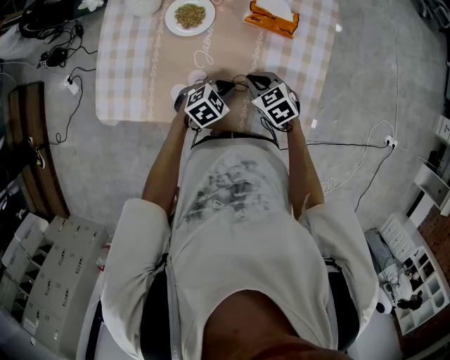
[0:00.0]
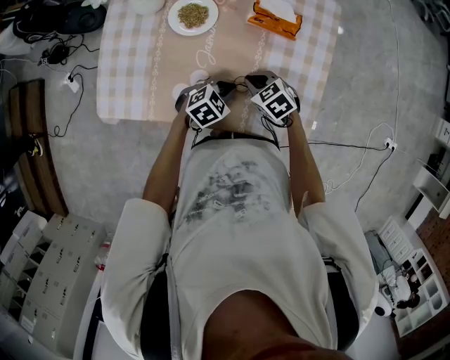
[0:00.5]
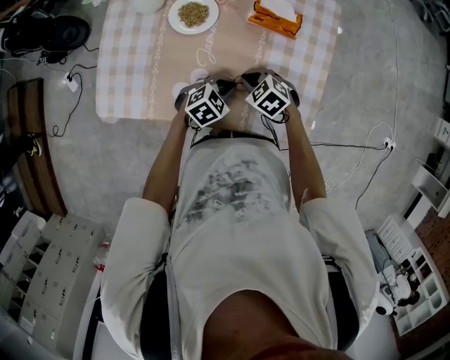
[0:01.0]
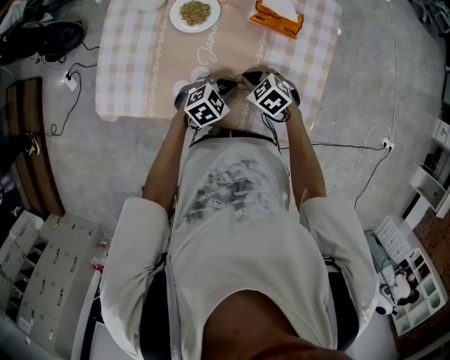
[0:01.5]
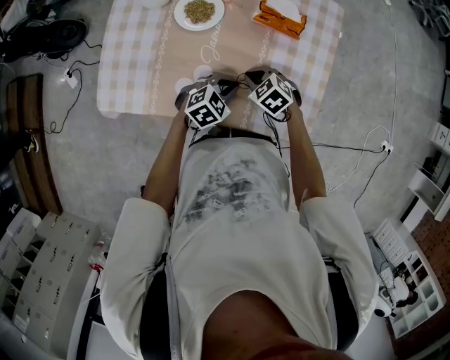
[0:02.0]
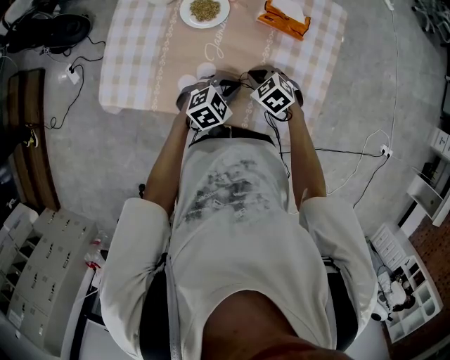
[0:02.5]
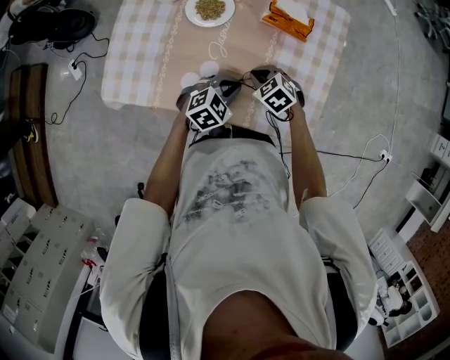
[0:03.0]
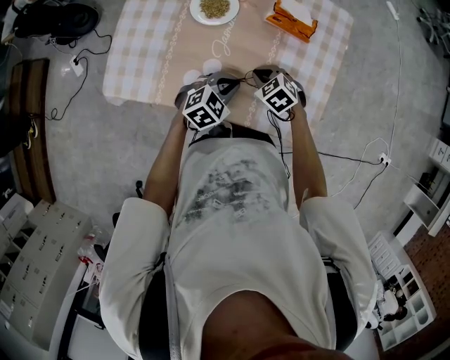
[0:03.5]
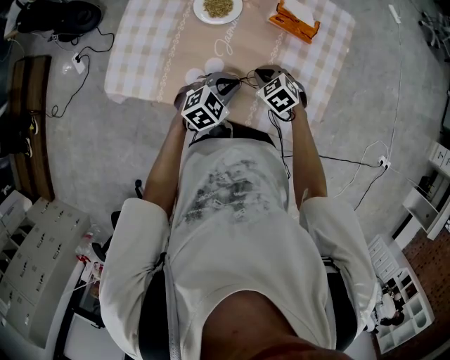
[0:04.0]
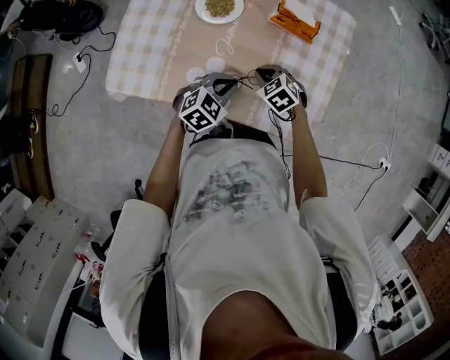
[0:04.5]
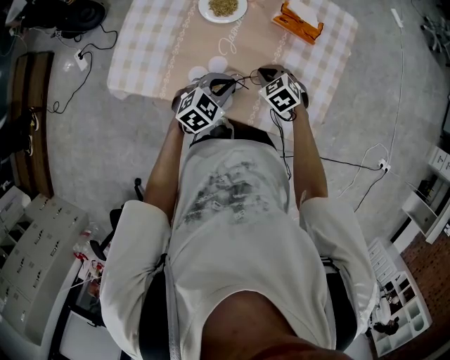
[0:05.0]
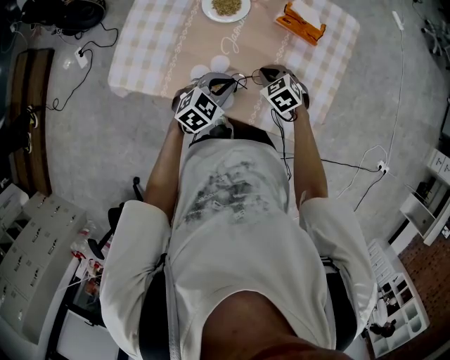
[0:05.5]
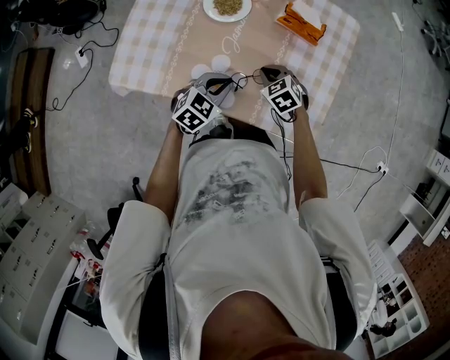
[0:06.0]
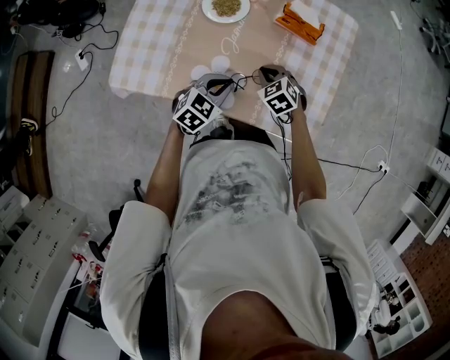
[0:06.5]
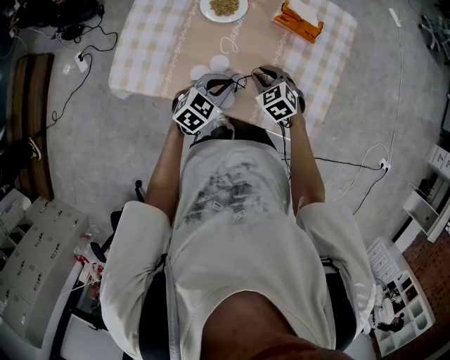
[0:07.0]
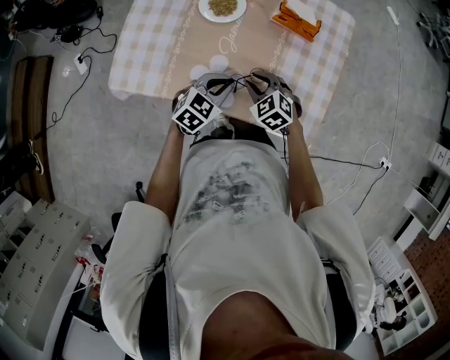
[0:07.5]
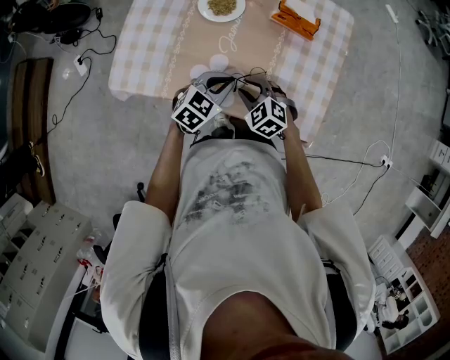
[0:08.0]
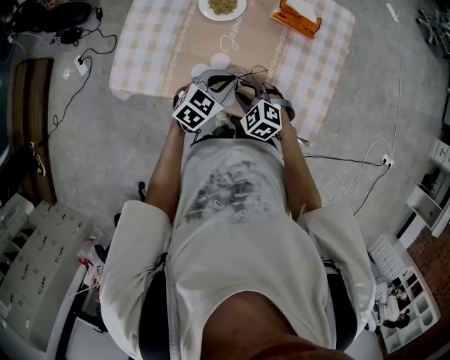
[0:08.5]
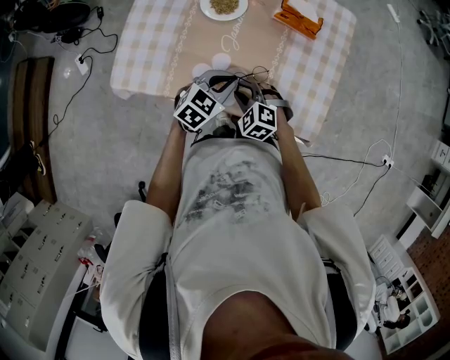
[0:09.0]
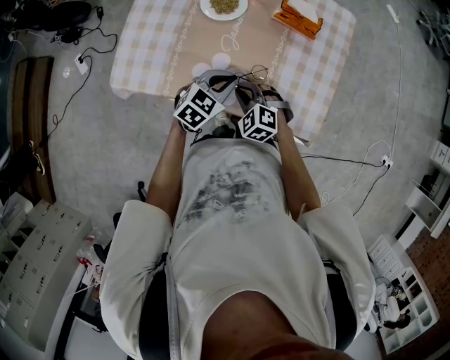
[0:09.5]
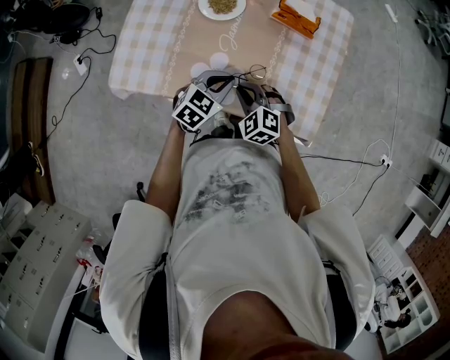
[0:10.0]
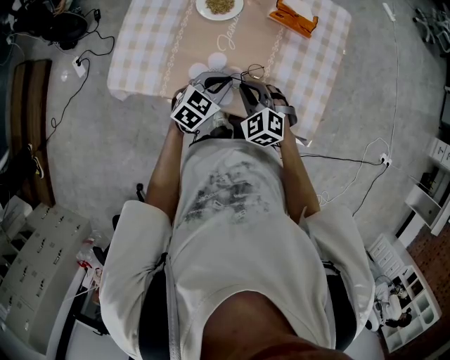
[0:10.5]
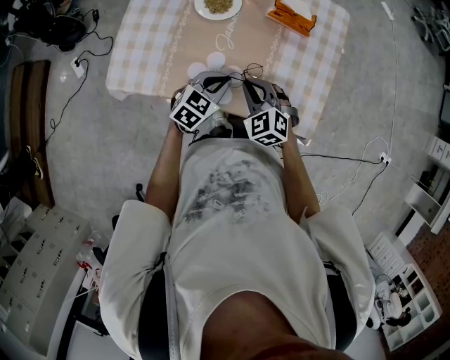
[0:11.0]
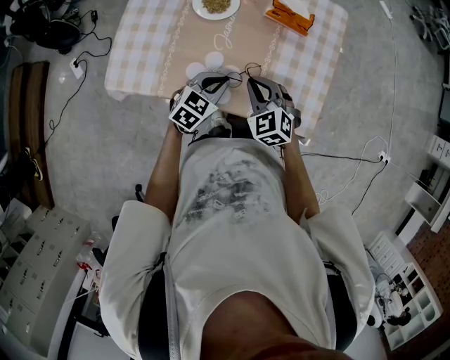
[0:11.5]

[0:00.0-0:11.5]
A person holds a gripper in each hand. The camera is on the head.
0:00.0 to 0:02.0: There are only small adjustments of the grippers.
0:02.0 to 0:04.0: There are only small adjustments of the grippers.
0:04.0 to 0:06.0: The grippers stay close to where they were, moving slightly.
0:06.0 to 0:07.5: The right gripper changes place by approximately 5 cm, and opens up.
0:07.5 to 0:09.5: The right gripper travels backward by about 5 cm.
0:09.5 to 0:11.5: The right gripper goes about 10 cm upward, and swivels roughly 20 degrees.

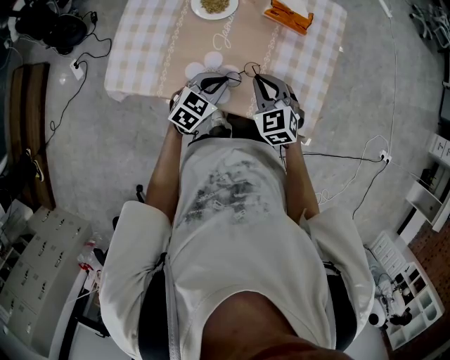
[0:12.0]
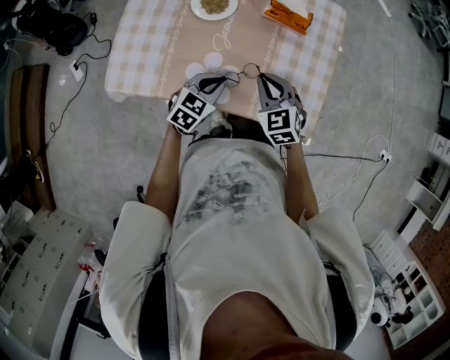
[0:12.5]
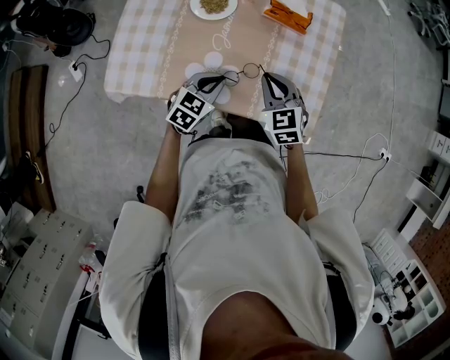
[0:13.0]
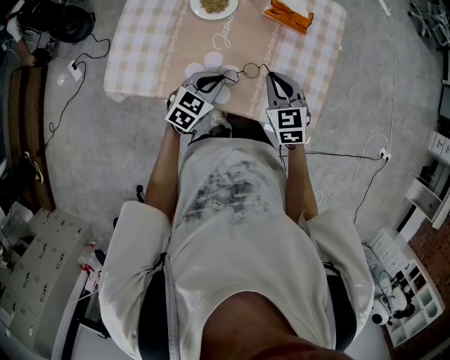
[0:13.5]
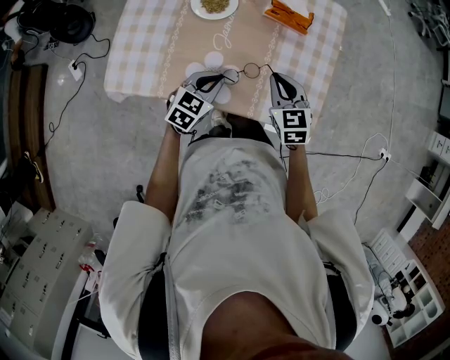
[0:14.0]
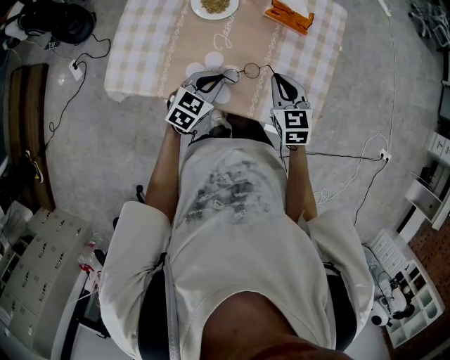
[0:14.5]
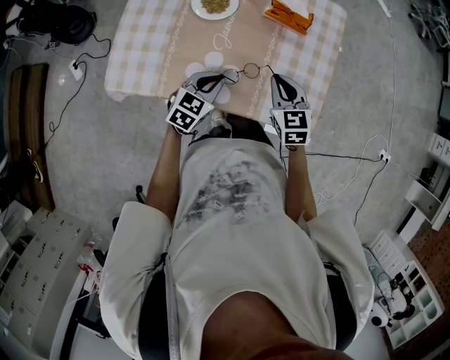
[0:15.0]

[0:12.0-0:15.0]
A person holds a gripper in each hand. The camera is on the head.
0:12.0 to 0:13.5: There are only small adjustments of the grippers.
0:13.5 to 0:15.0: The grippers move only a little.

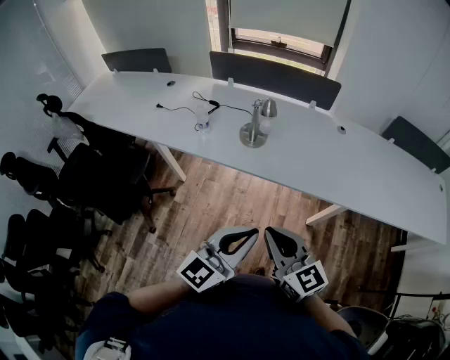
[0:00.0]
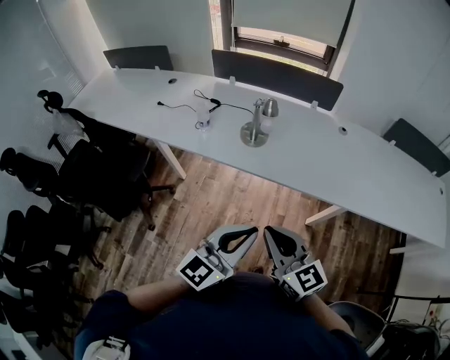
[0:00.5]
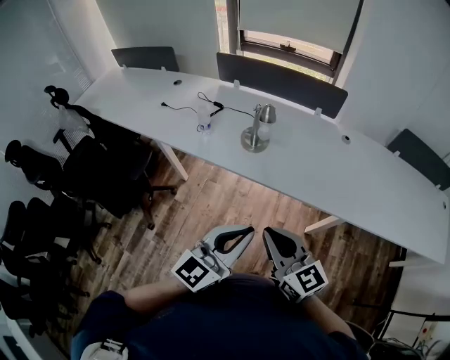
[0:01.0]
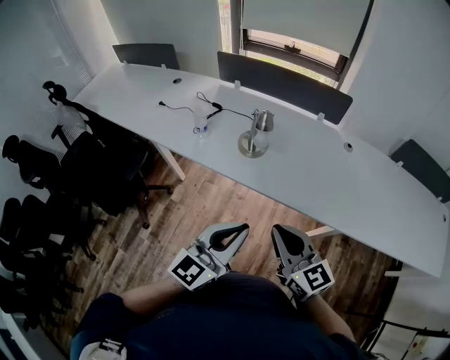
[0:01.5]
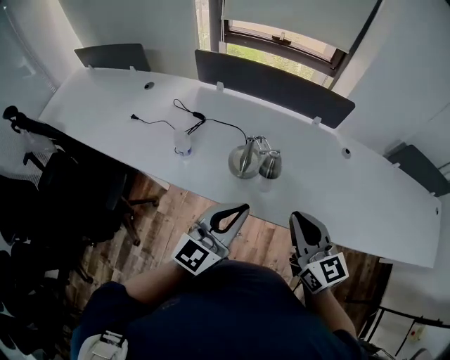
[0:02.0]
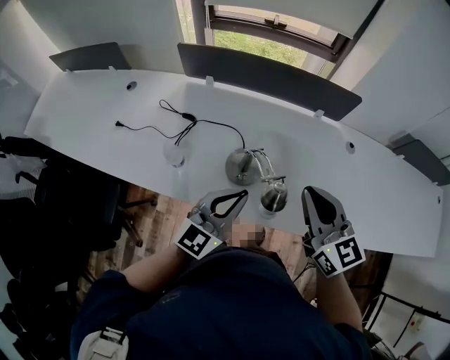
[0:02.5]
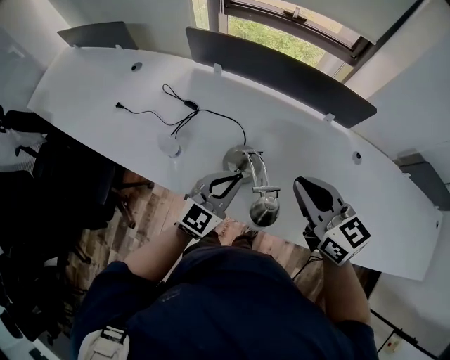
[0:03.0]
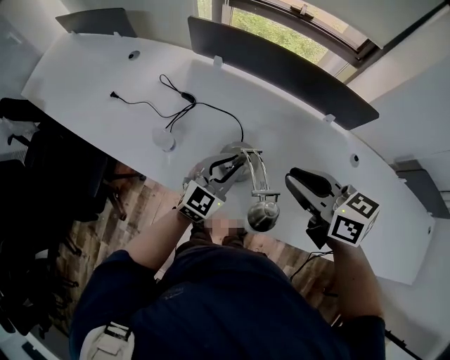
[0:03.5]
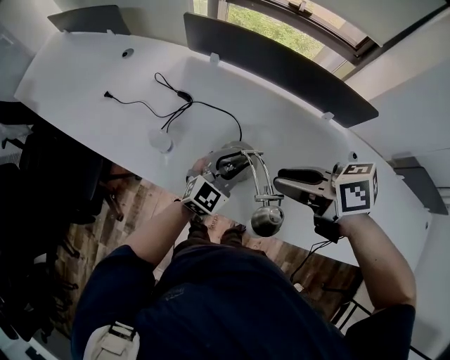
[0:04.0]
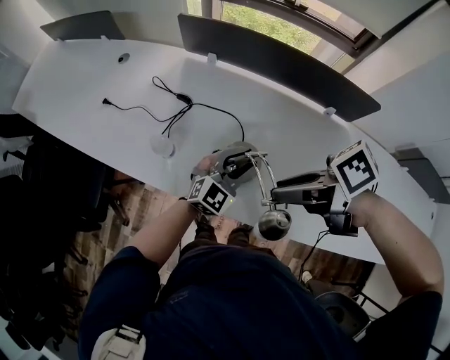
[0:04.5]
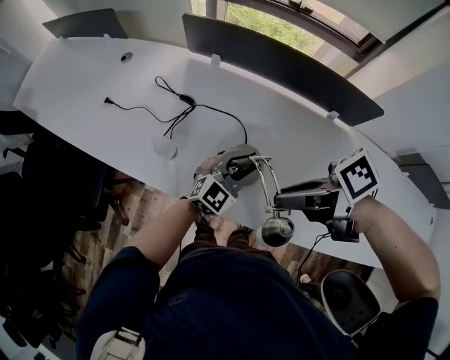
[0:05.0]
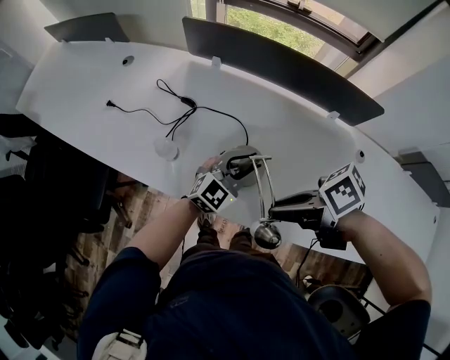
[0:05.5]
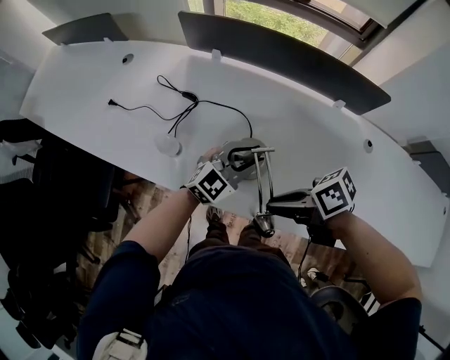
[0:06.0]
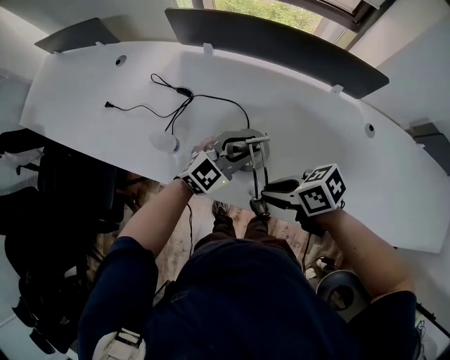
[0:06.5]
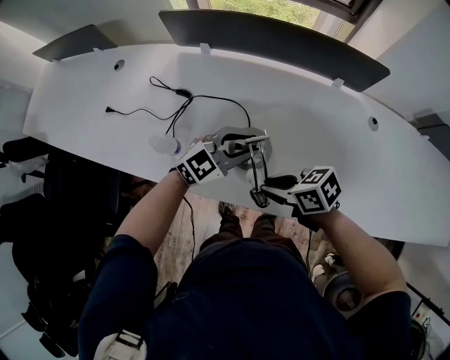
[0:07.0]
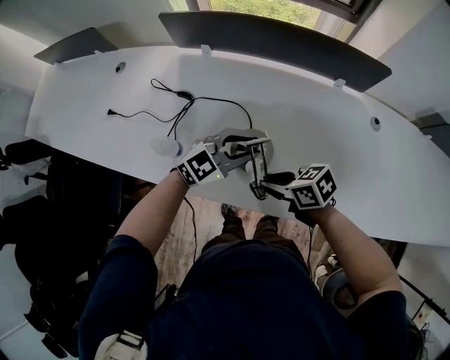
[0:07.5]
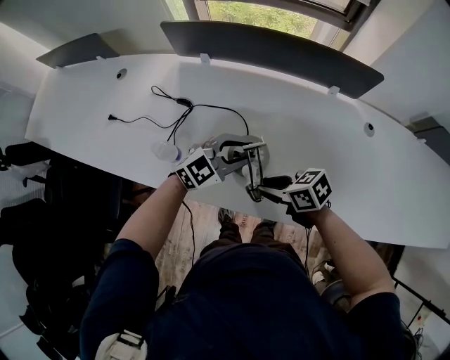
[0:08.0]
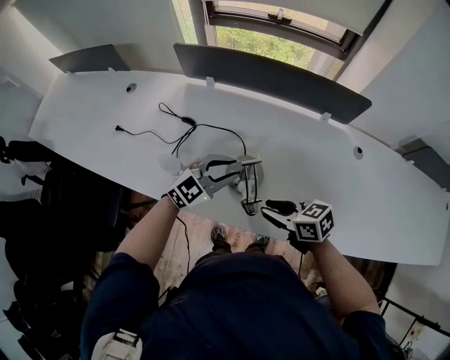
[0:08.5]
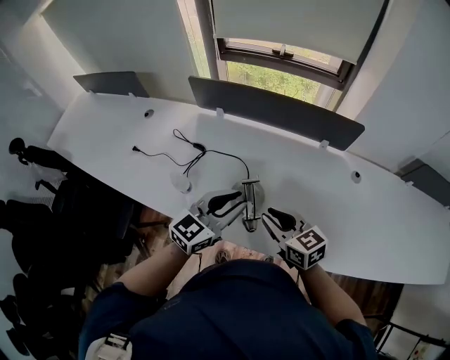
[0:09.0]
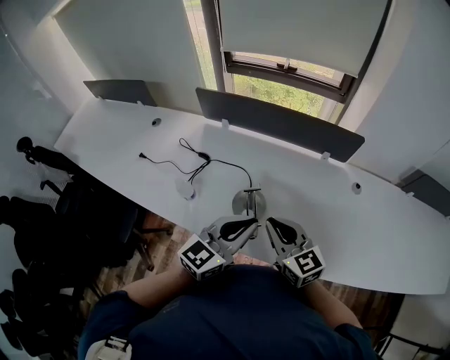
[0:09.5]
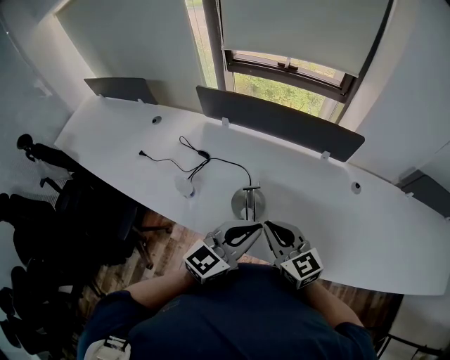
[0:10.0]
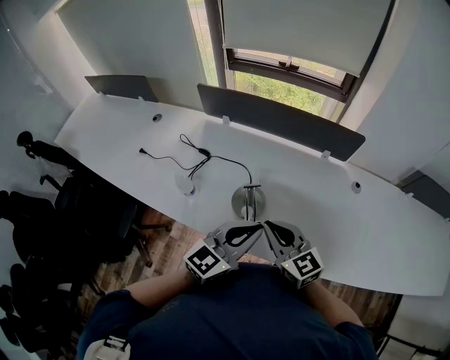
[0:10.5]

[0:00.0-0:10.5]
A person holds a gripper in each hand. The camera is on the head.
0:00.0 to 0:02.0: The grippers both shift forward by approximately 30 cm.
0:02.0 to 0:04.0: The right gripper shifts by roughly 20 cm, rotates about 60 degrees, and opens its fingers, while the left gripper ends up about 30 cm from where it was, swivels about 20 degrees, and opens.
0:04.0 to 0:06.5: The right gripper is displaced downward by approximately 15 cm.
0:06.5 to 0:08.5: The right gripper rotates approximately 20 degrees.
0:08.5 to 0:10.5: The left gripper changes place by roughly 20 cm, turns by some 30 degrees, and closes its fingers. Meanwhile the right gripper is displaced upward by about 15 cm, swivels roughly 40 degrees, and closes up.

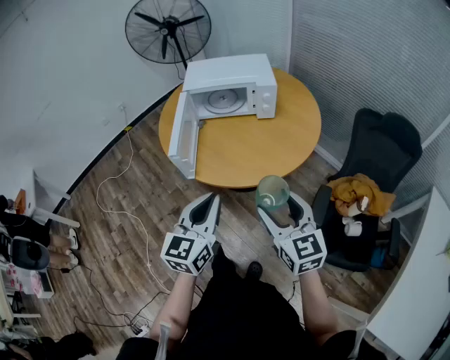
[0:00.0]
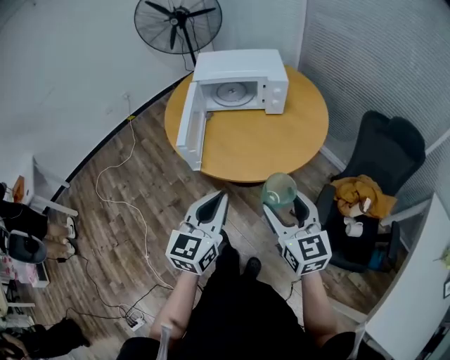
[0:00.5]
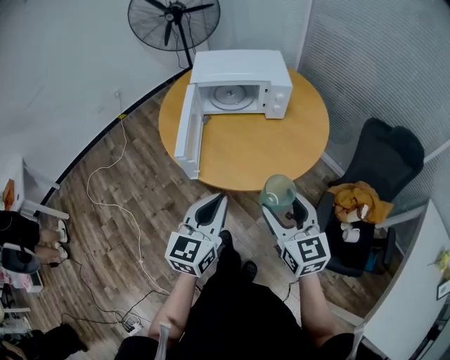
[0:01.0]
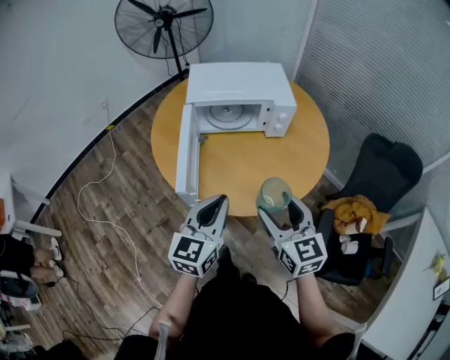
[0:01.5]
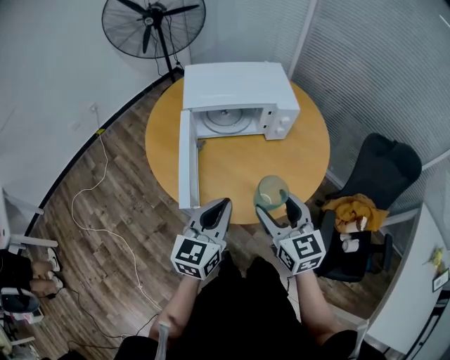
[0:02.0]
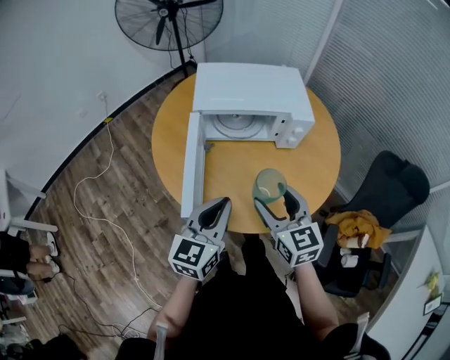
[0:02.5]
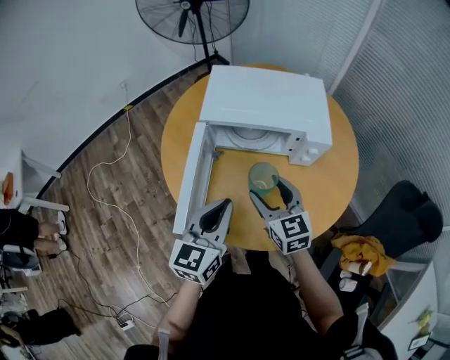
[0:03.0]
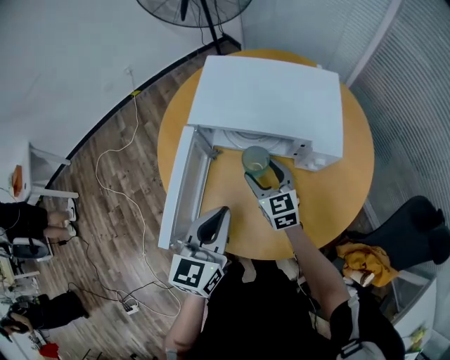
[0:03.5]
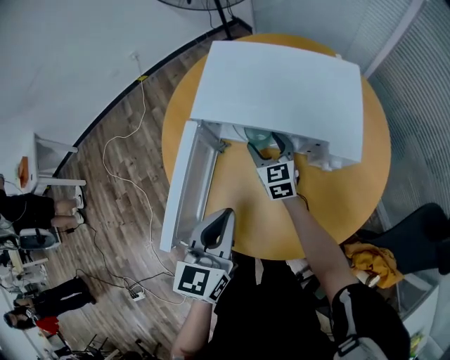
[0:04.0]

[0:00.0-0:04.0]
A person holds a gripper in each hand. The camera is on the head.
0:00.0 to 0:02.0: Both grippers move forward and to the left, about 20 cm.
0:02.0 to 0:04.0: The left gripper moves forward, some 15 cm, and changes its angle by roughly 30 degrees; the right gripper moves forward and downward, some 40 cm.
